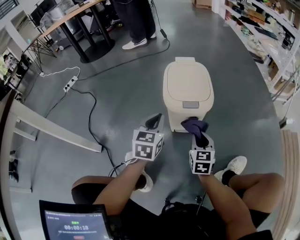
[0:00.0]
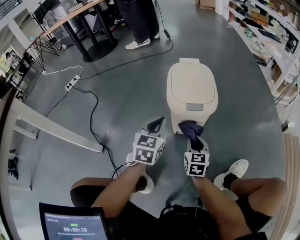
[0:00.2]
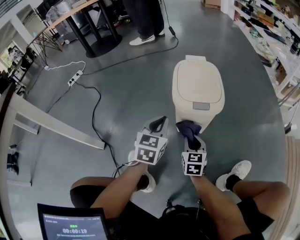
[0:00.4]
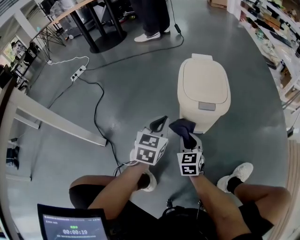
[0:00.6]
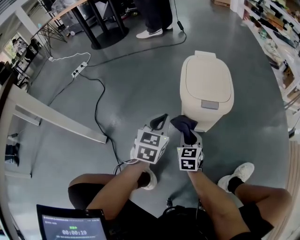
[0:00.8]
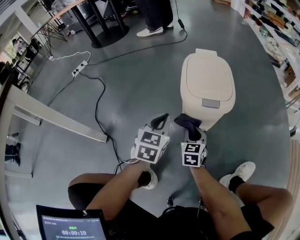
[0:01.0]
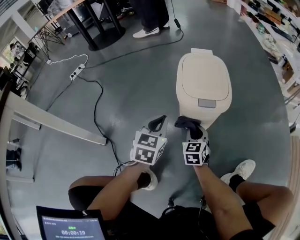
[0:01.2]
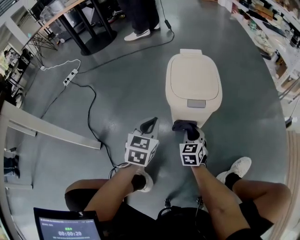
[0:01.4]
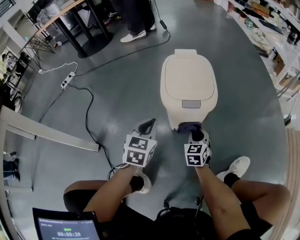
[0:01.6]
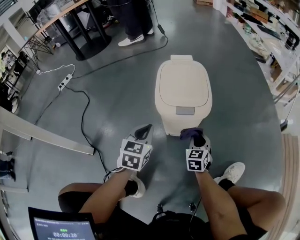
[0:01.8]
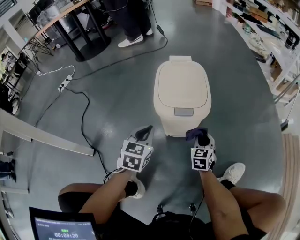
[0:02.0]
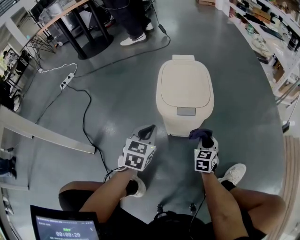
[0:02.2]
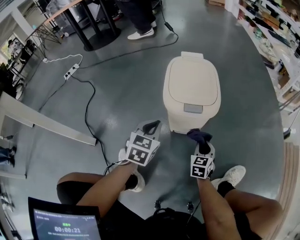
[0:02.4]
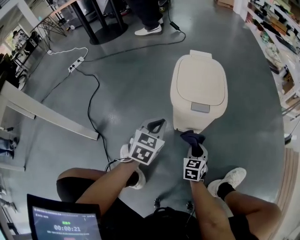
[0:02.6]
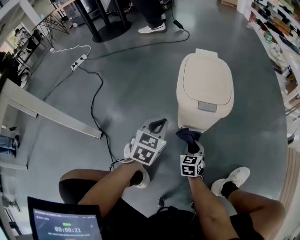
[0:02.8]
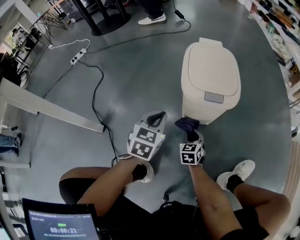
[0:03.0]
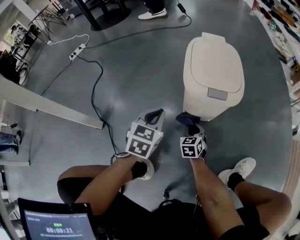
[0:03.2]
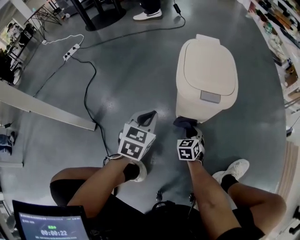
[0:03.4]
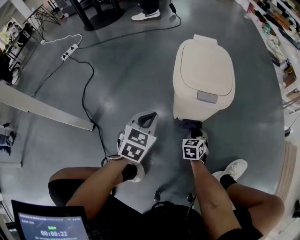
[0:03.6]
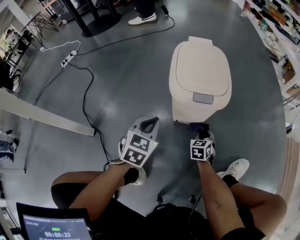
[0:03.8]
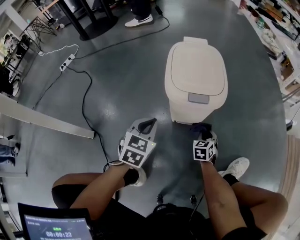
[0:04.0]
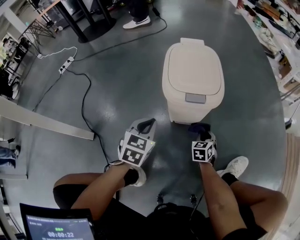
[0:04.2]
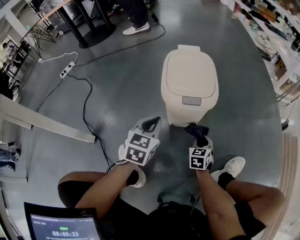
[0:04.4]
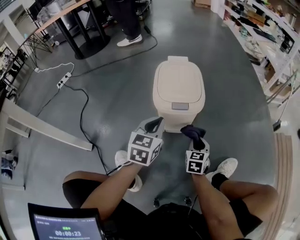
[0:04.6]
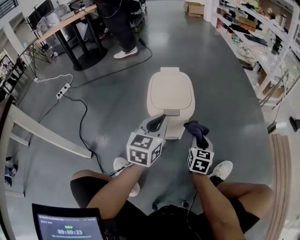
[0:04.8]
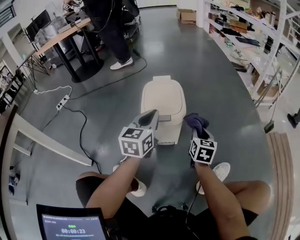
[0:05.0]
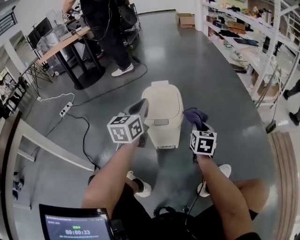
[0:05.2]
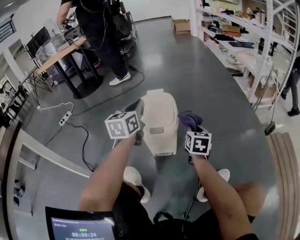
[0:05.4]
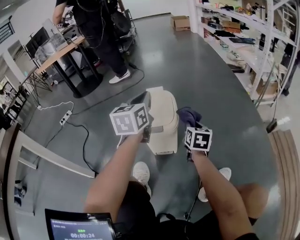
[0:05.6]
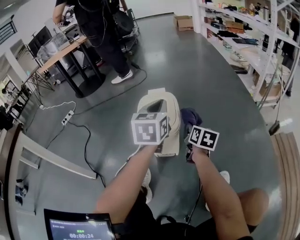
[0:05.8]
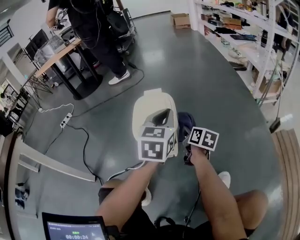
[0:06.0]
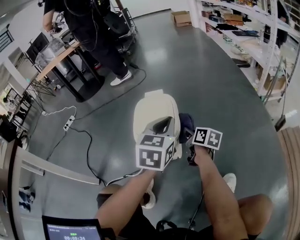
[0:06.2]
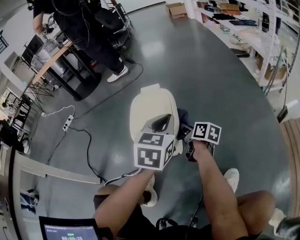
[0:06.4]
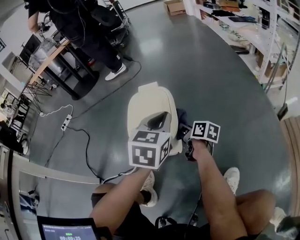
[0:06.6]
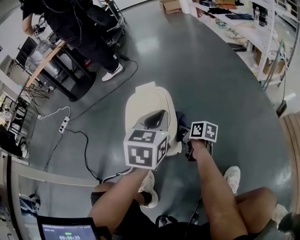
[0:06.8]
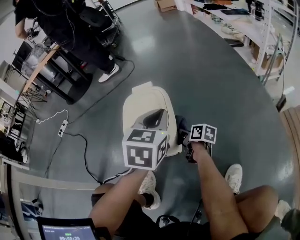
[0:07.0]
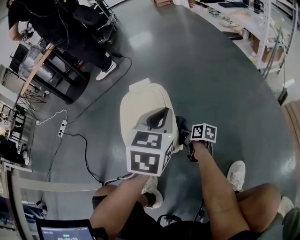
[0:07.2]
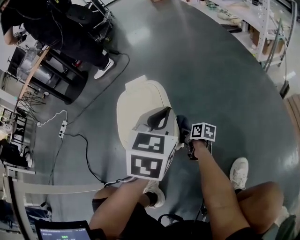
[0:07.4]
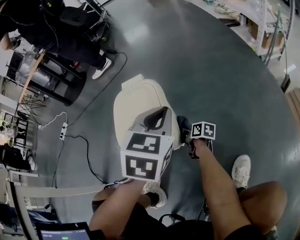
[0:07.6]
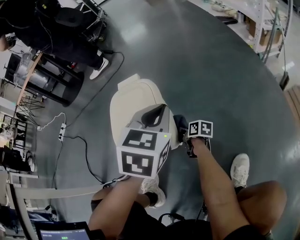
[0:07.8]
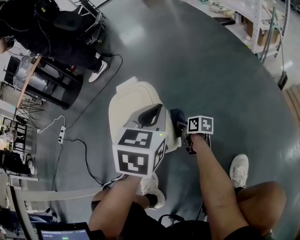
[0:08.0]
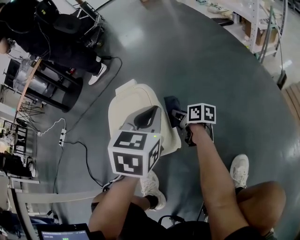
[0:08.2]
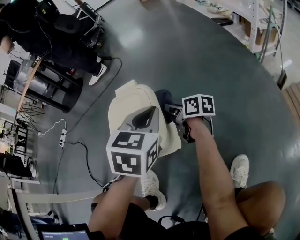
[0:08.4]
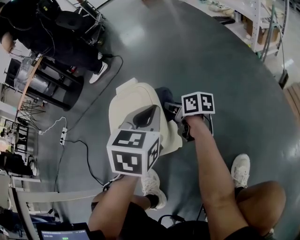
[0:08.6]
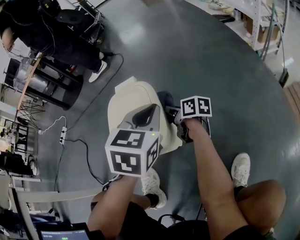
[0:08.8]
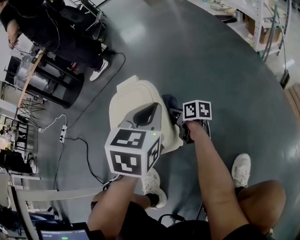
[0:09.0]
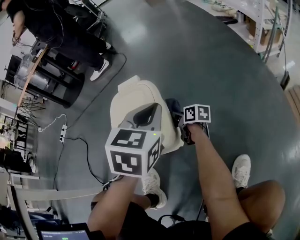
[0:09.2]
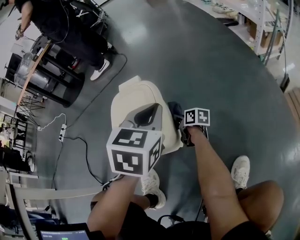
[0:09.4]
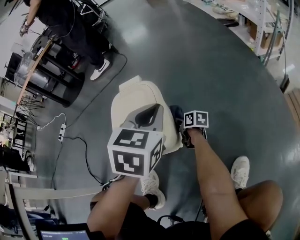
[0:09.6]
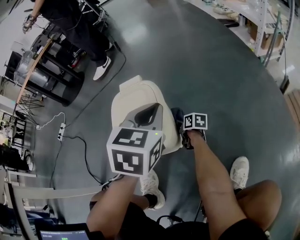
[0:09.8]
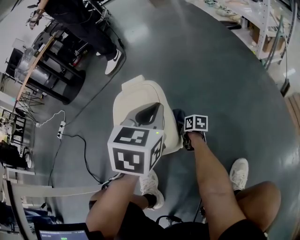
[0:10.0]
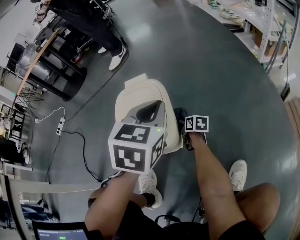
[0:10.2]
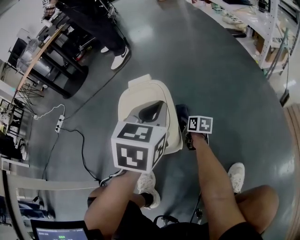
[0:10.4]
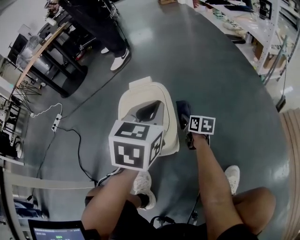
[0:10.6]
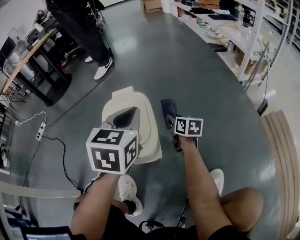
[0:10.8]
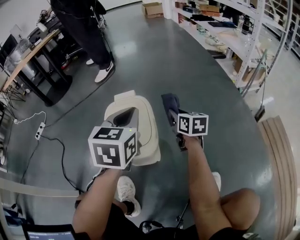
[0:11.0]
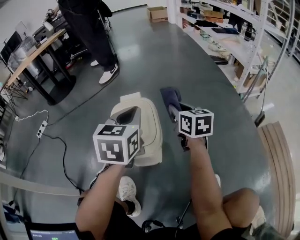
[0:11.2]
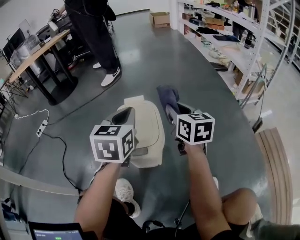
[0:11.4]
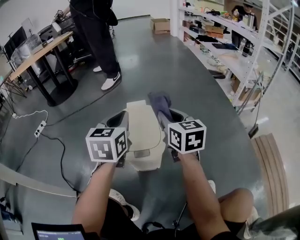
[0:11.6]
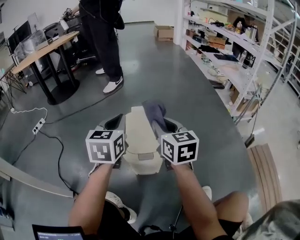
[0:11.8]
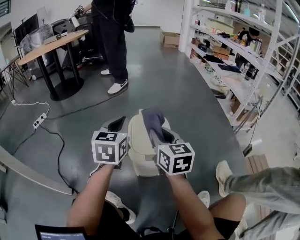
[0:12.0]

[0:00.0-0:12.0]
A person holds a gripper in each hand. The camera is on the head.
0:00.0 to 0:01.6: The left gripper moves downward, some 5 cm. The right gripper travels downward and forward by roughly 10 cm, and goes to the left and returns, roughly 10 cm each way.
0:01.6 to 0:03.0: The right gripper is displaced downward and to the left by about 10 cm.
0:03.0 to 0:04.4: The right gripper is displaced to the right by some 15 cm. Meanwhile the left gripper goes approximately 5 cm to the right.
0:04.4 to 0:06.0: The left gripper heads upward, to the right and forward, covering some 30 cm. Meanwhile the right gripper shifts some 25 cm upward and forward, and twists about 50 degrees clockwise, seen from behind.
0:06.0 to 0:07.6: The right gripper is displaced downward by roughly 25 cm, and rotates some 30 degrees. The left gripper goes roughly 10 cm downward and forward, and rotates roughly 20 degrees.
0:07.6 to 0:09.0: The right gripper heads upward and forward, covering approximately 15 cm.
0:09.0 to 0:10.4: The right gripper is displaced downward by roughly 5 cm.
0:10.4 to 0:12.0: The left gripper travels to the left and upward by approximately 20 cm, and turns by approximately 20 degrees, while the right gripper is displaced upward by some 40 cm, and turns by approximately 40 degrees.

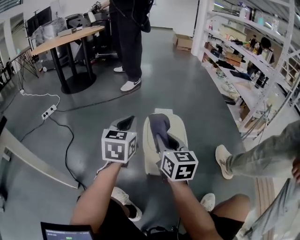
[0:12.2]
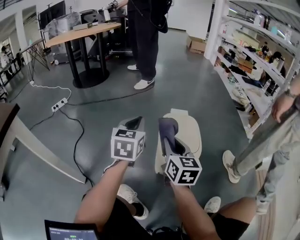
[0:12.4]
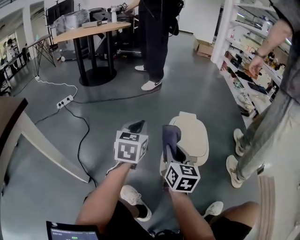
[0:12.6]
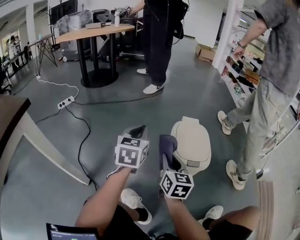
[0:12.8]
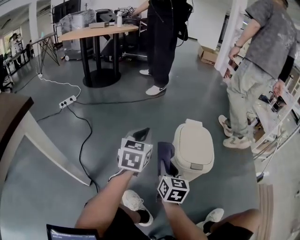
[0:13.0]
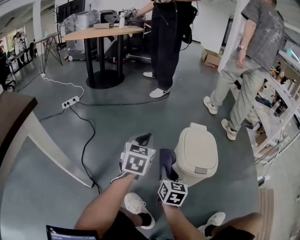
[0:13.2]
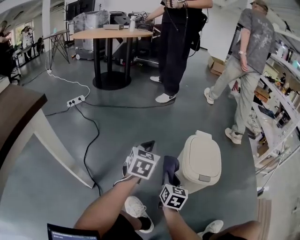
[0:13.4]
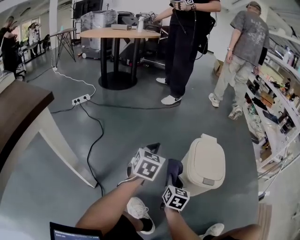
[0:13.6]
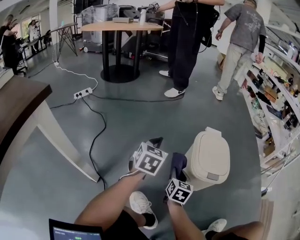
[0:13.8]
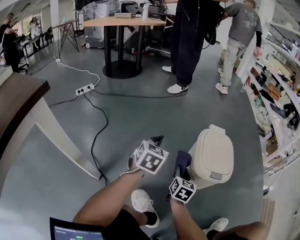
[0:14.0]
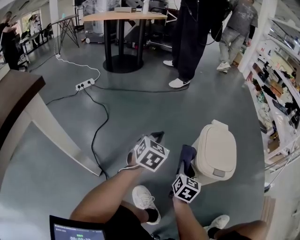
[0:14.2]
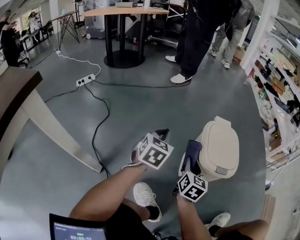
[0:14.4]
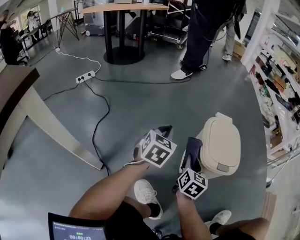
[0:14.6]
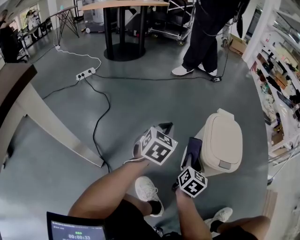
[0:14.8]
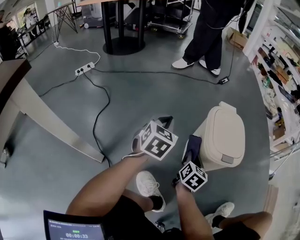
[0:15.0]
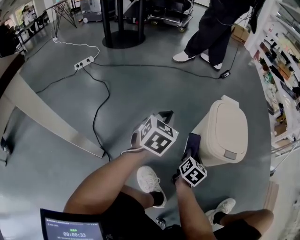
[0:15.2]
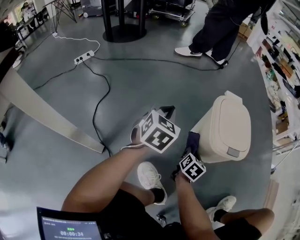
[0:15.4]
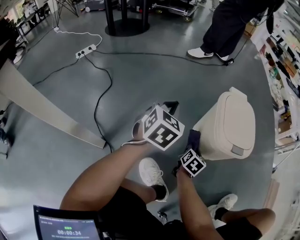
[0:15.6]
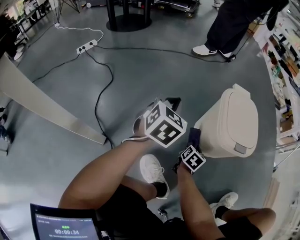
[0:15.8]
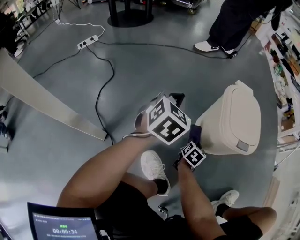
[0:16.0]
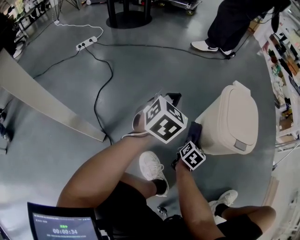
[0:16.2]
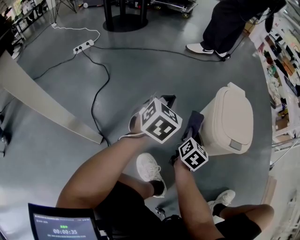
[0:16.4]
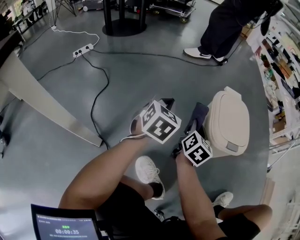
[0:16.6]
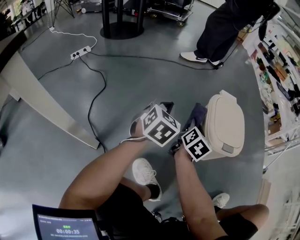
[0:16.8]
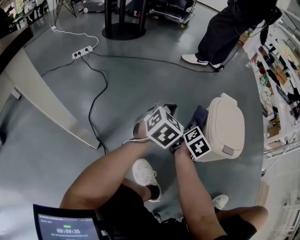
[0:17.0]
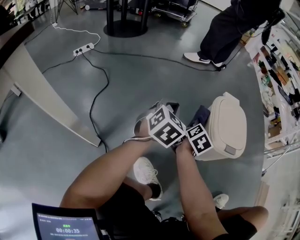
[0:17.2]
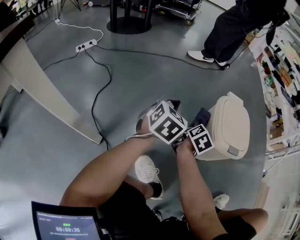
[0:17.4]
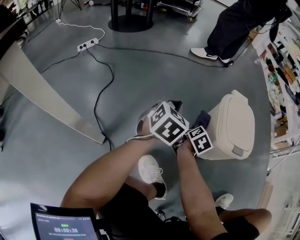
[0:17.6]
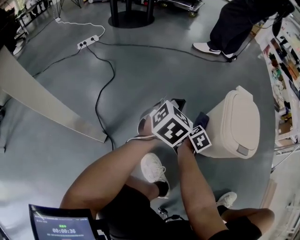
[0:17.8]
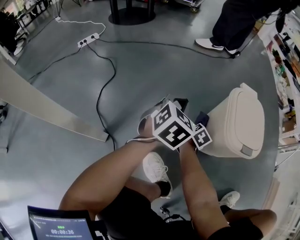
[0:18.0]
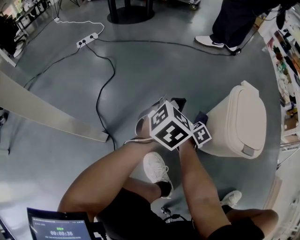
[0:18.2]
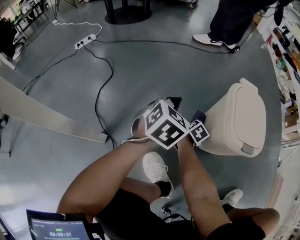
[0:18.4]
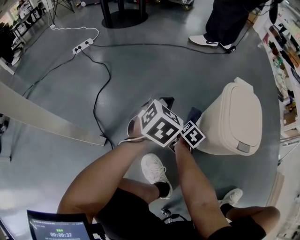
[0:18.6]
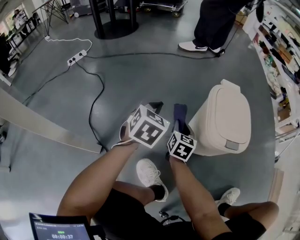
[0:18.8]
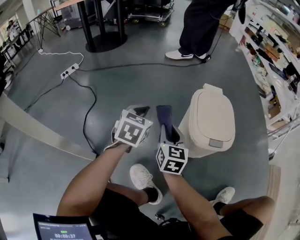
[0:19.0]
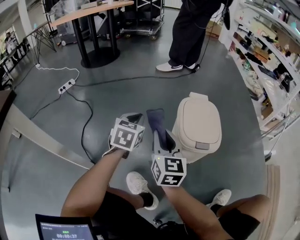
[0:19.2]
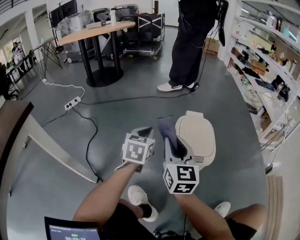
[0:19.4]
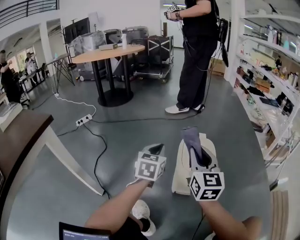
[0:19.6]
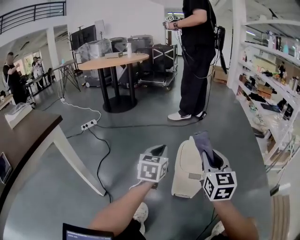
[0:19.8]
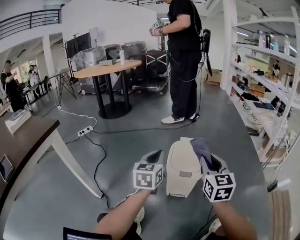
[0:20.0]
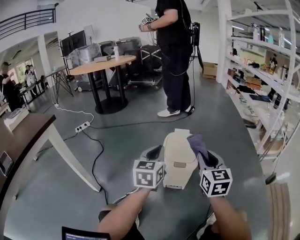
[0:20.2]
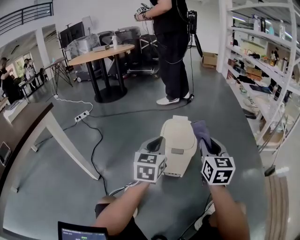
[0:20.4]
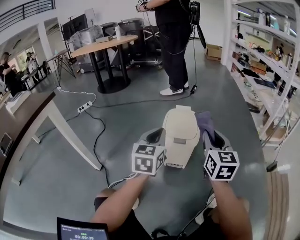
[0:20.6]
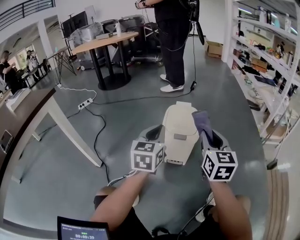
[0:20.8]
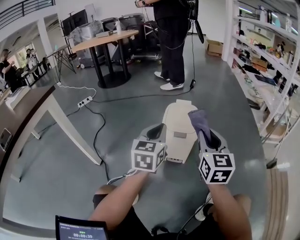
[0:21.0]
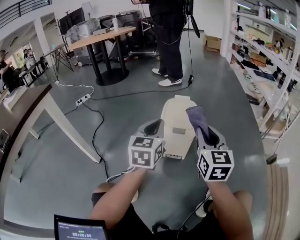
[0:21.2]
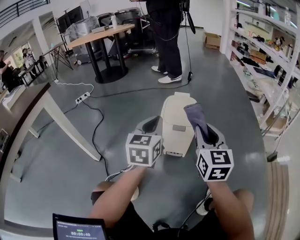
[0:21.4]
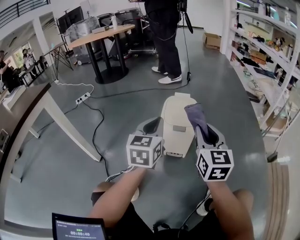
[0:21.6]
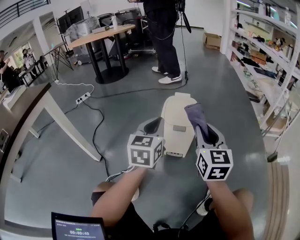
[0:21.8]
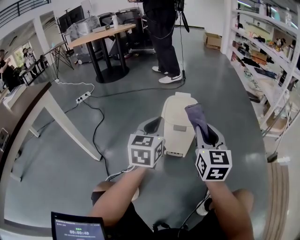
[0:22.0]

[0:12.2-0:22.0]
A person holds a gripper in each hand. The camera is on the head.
0:12.2 to 0:13.6: The left gripper shifts approximately 15 cm to the left and downward. Meanwhile the right gripper shifts about 25 cm downward and to the left.
0:13.6 to 0:15.0: Both grippers travel together downward, about 5 cm.
0:15.0 to 0:16.4: The right gripper moves about 15 cm downward and comes back.
0:16.4 to 0:17.8: The right gripper is displaced downward and forward by approximately 10 cm, and turns by approximately 20 degrees.
0:17.8 to 0:19.2: The right gripper heads upward, covering approximately 30 cm, and tips its fingers upward by roughly 30 degrees. The left gripper heads upward, covering approximately 5 cm.
0:19.2 to 0:20.6: The right gripper moves to the right and upward, some 30 cm. Meanwhile the left gripper moves to the right, backward and upward, roughly 30 cm, and turns by roughly 20 degrees.
0:20.6 to 0:22.0: The grippers make only small movements.

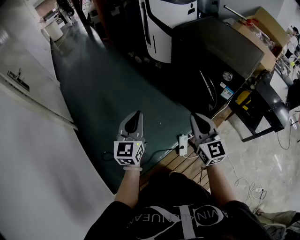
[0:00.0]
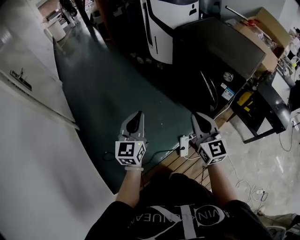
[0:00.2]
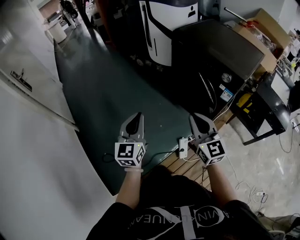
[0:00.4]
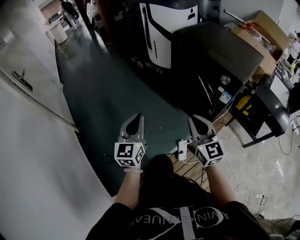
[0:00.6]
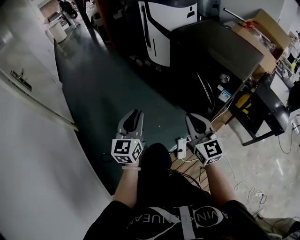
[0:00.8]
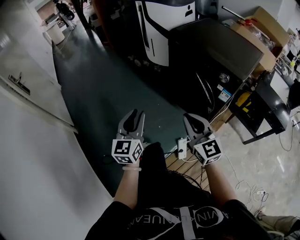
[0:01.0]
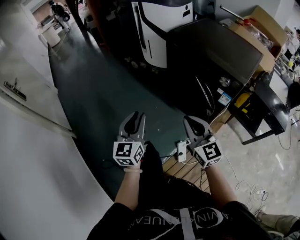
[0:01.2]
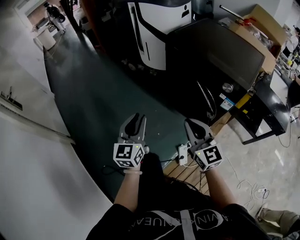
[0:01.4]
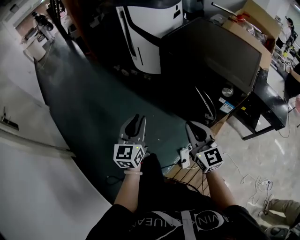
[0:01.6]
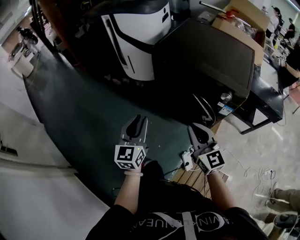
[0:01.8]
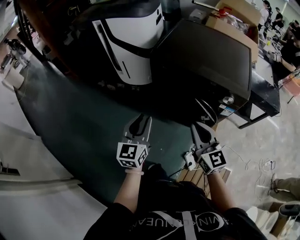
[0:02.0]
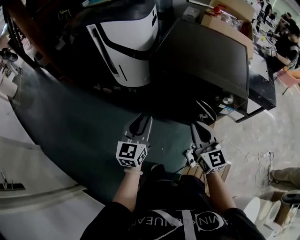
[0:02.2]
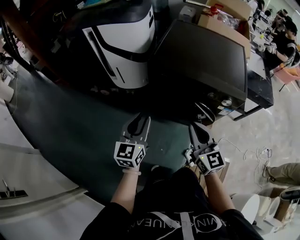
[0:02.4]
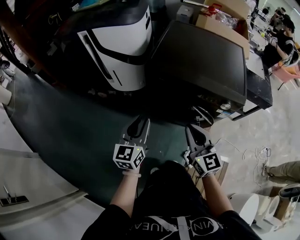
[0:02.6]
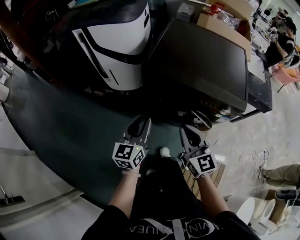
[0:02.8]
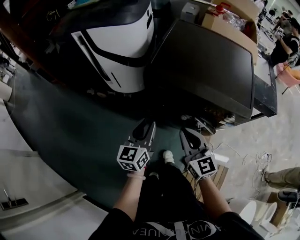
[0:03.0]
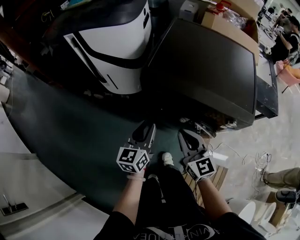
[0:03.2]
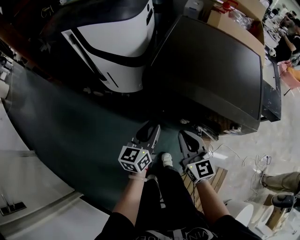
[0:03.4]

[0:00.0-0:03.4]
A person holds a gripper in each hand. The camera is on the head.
0:00.0 to 0:01.6: The grippers both shift forward by approximately 15 cm.
0:01.6 to 0:03.4: The two grippers go approximately 30 cm forward. The right gripper rotates about 20 degrees. Meanwhile the left gripper turns by approximately 30 degrees.
